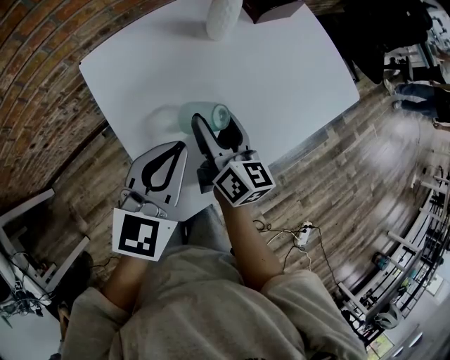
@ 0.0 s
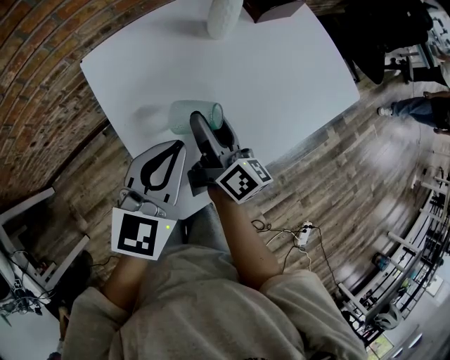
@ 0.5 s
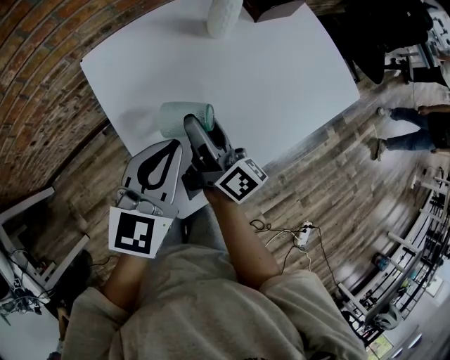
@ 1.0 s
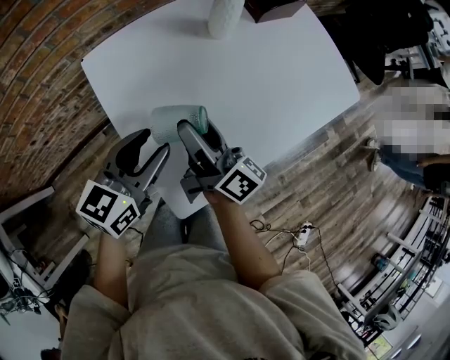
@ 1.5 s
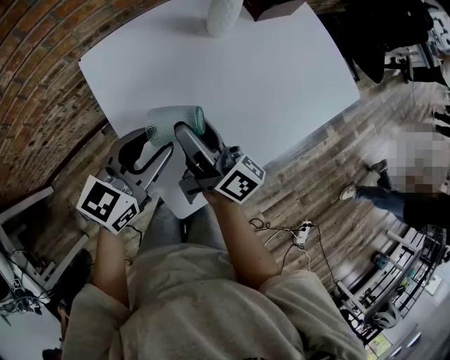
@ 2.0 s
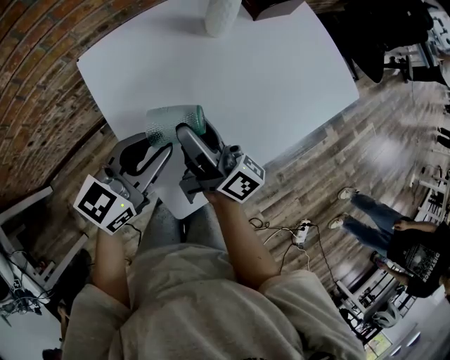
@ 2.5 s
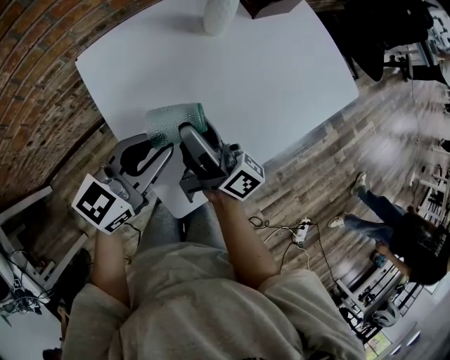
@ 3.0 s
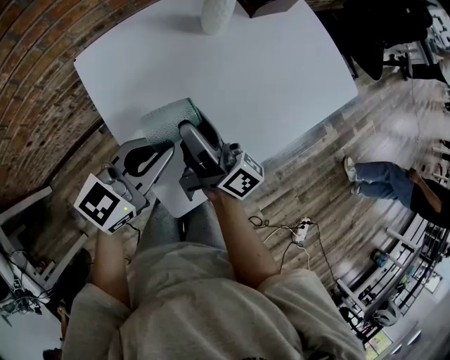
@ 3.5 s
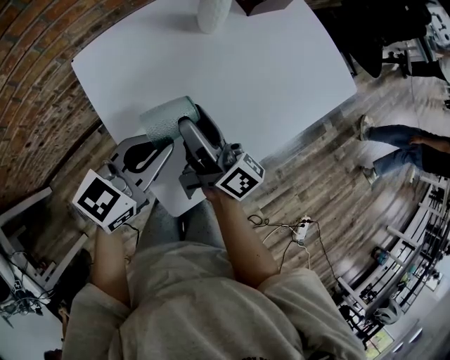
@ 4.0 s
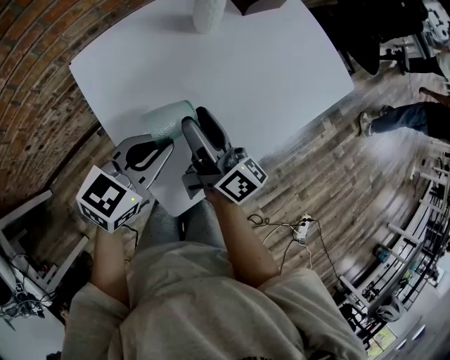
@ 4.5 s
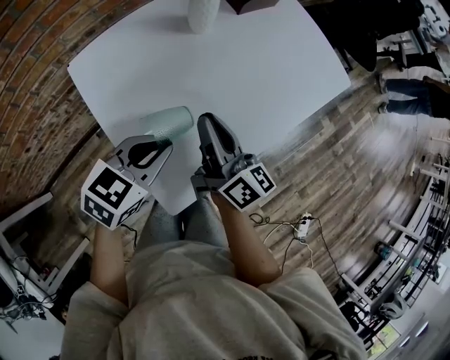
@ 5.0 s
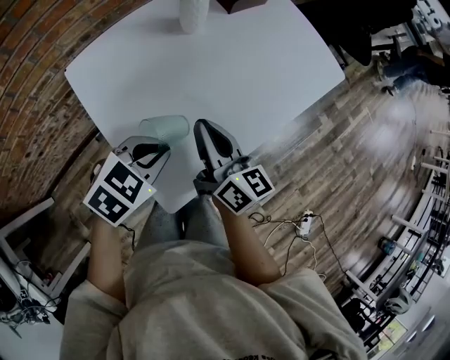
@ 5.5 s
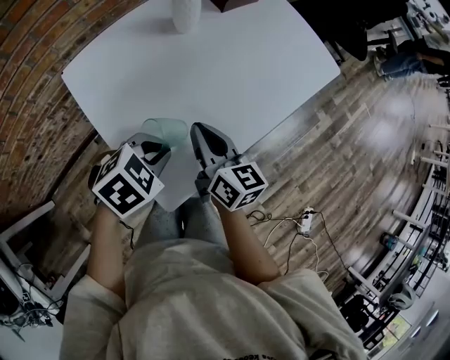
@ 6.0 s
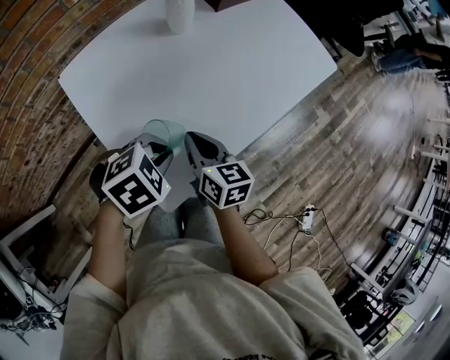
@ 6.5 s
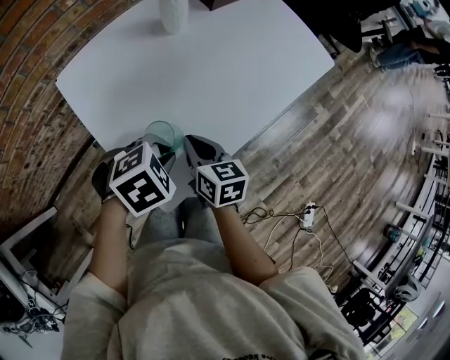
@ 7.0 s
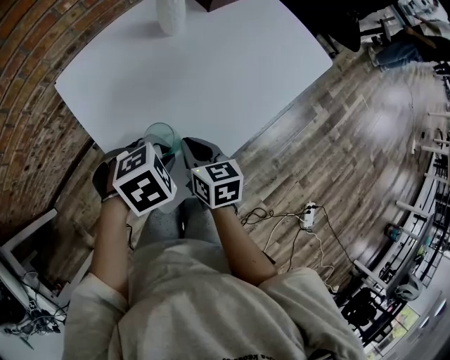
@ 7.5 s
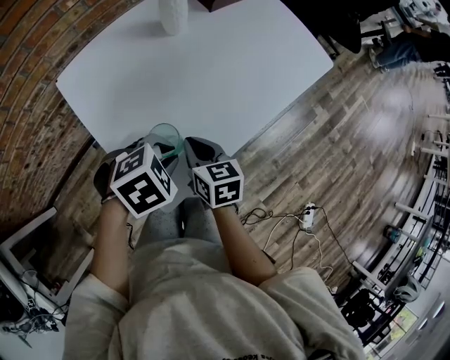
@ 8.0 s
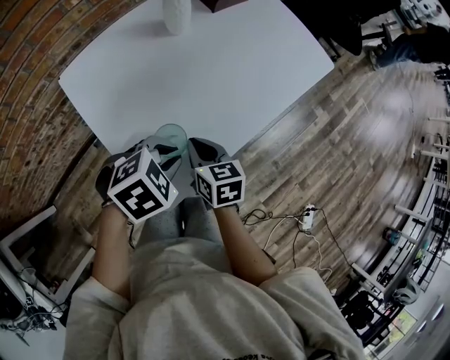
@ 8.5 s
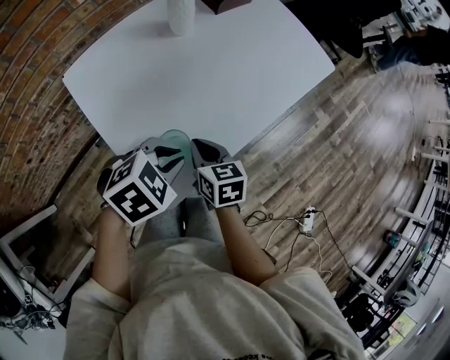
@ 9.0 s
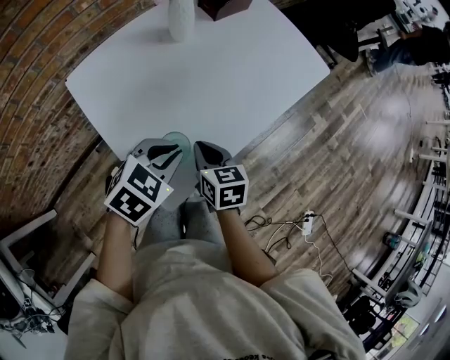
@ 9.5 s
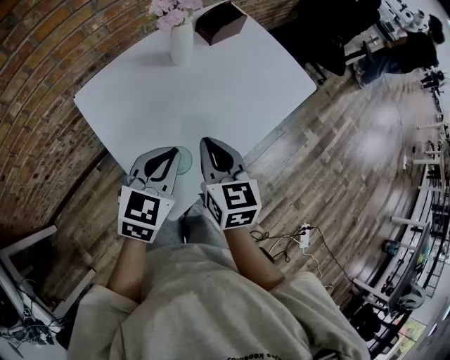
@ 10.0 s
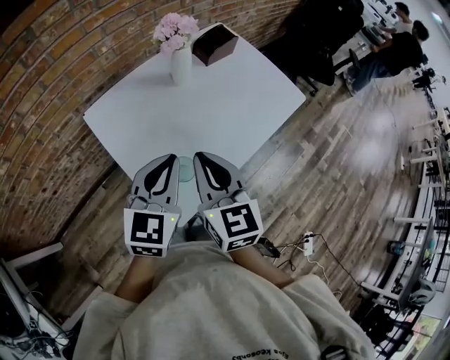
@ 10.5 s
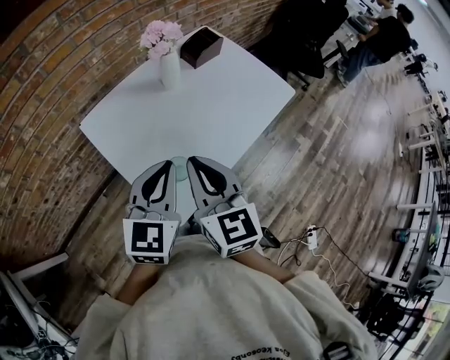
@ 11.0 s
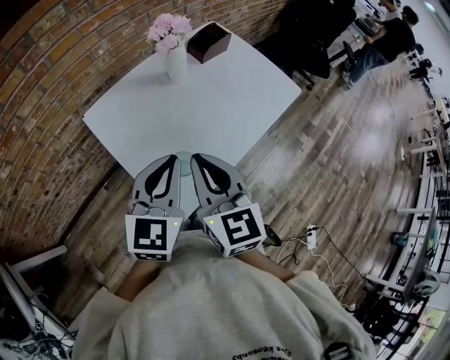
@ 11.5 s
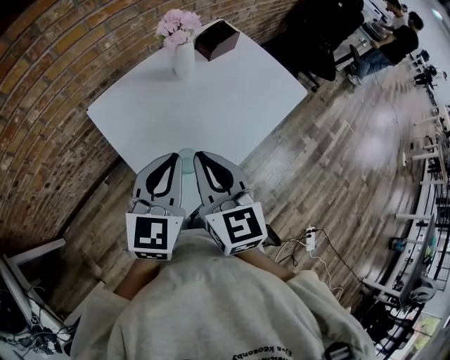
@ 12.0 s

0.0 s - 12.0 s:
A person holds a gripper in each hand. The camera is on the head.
0.0 s - 2.0 s: The right gripper ends up approximately 5 cm from where it was, and turns by approximately 40 degrees; the left gripper moves about 5 cm, and opens.
2.0 s - 4.0 s: The left gripper closes.
4.0 s - 6.0 s: The right gripper is displaced to the right by approximately 5 cm, swivels roughly 40 degrees, and closes its fingers. Meanwhile the left gripper moves downward, about 5 cm, and angles its fingers downward, by approximately 40 degrees.
6.0 s - 8.0 s: The right gripper heads downward, covering some 5 cm, and changes its angle by approximately 20 degrees.
8.0 s - 10.0 s: The grippers both shift upward by about 15 cm. The right gripper rotates approximately 20 degrees, while the left gripper tilts its fingers roughly 40 degrees upward.
10.0 s - 12.0 s: The right gripper moves upward and backward, some 15 cm. The left gripper is displaced upward by roughly 10 cm.

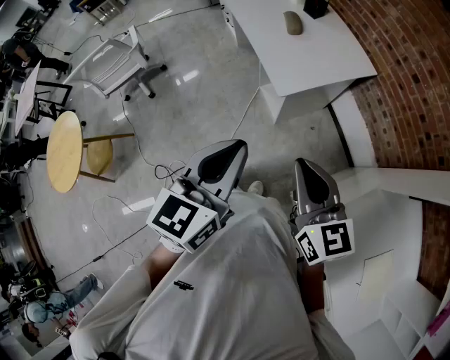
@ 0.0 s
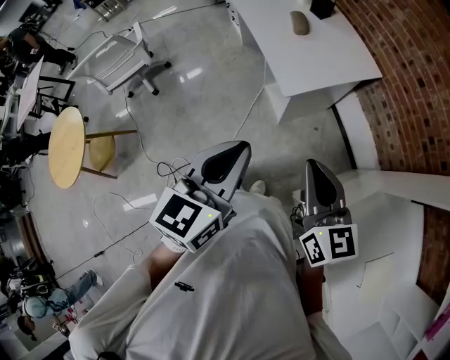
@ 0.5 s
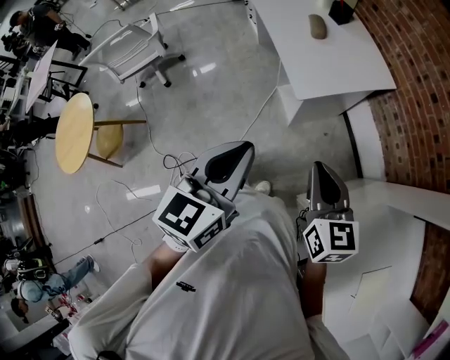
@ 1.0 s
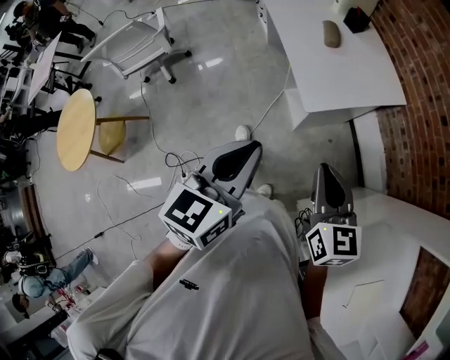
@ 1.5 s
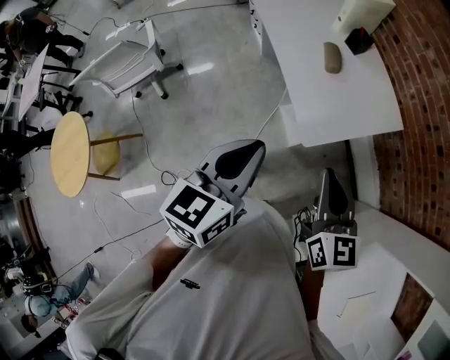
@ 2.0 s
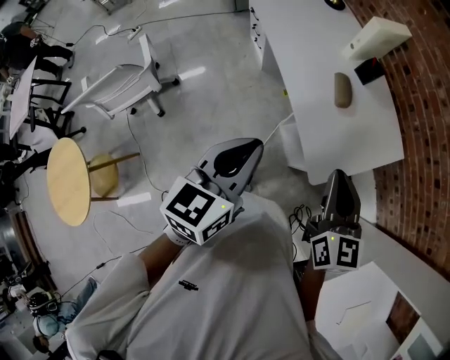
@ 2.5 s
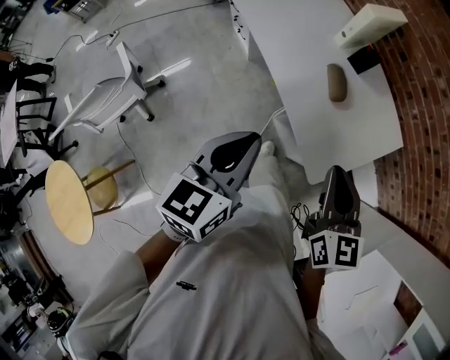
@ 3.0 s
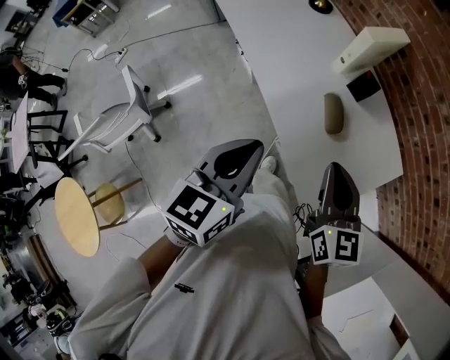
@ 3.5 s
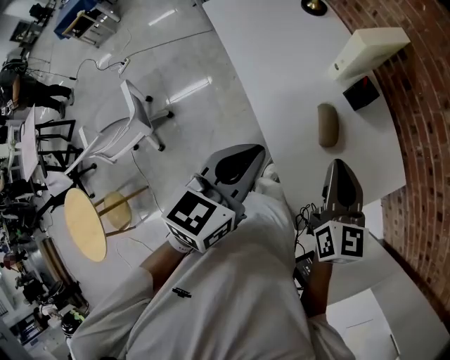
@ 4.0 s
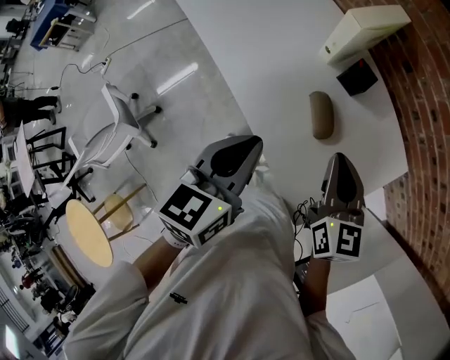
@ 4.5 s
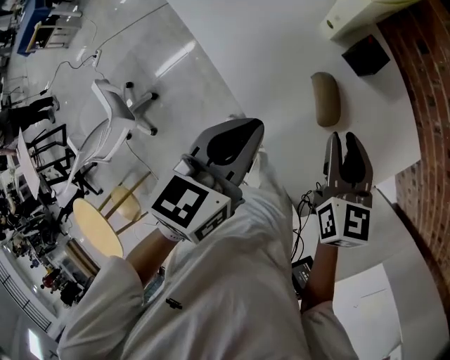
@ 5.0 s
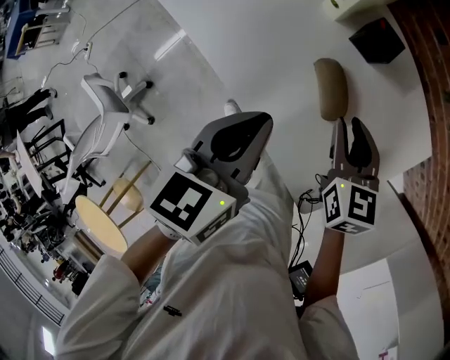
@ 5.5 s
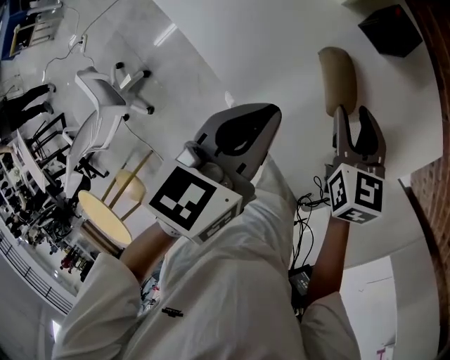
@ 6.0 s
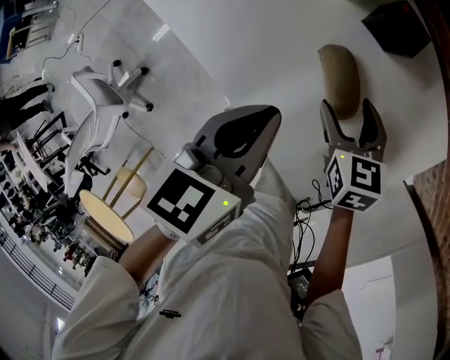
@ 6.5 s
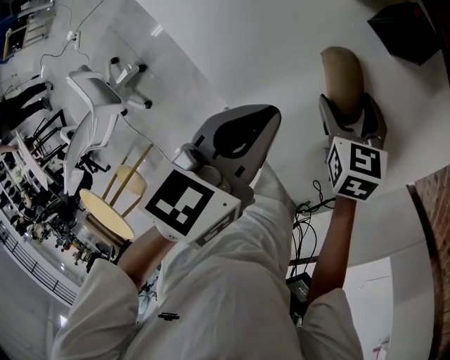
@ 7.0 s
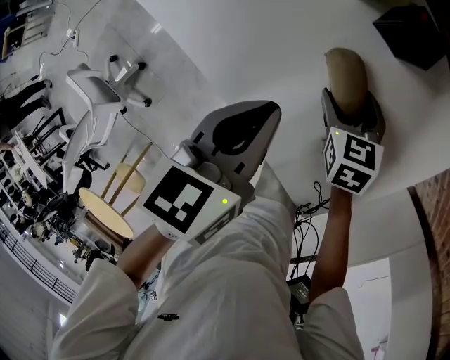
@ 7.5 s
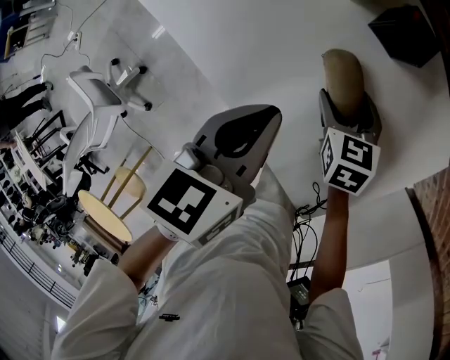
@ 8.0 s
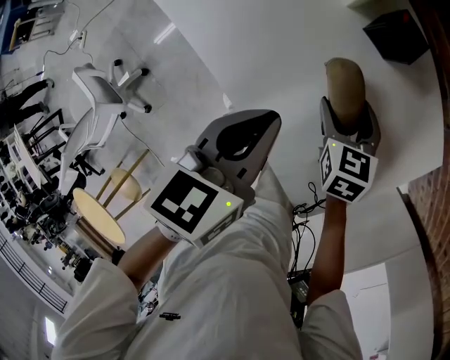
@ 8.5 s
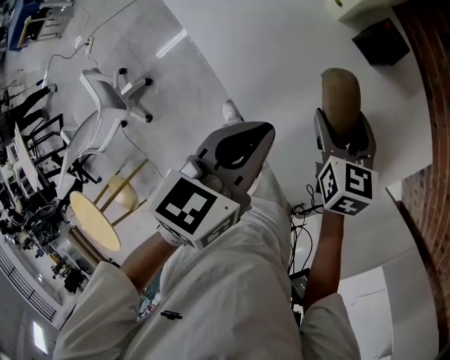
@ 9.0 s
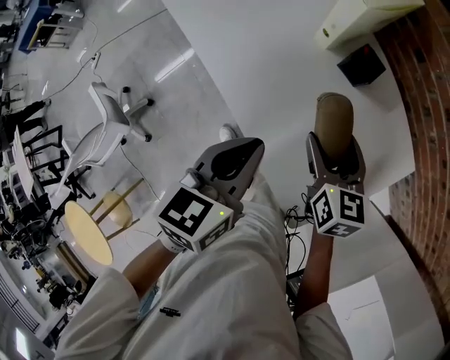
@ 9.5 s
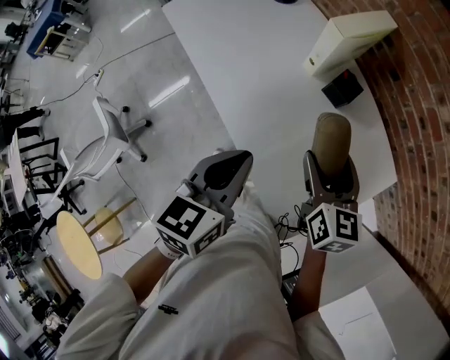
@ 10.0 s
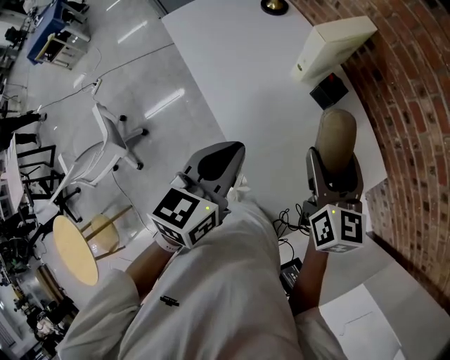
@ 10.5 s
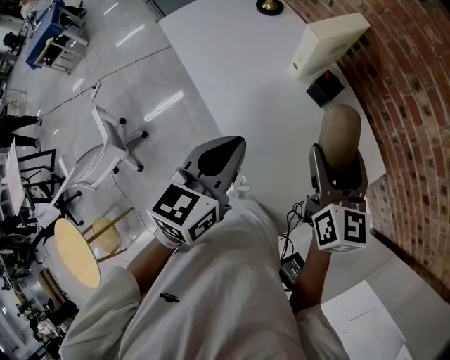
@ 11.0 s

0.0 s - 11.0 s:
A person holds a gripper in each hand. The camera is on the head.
0.0 s - 2.0 s: The left gripper goes some 25 cm forward and to the left. Meanwhile the right gripper travels forward by some 20 cm.
2.0 s - 3.5 s: Both grippers travel together forward, roughly 30 cm.
3.5 s - 5.5 s: The right gripper shifts about 30 cm downward and forward, and rotates about 20 degrees, while the left gripper moves forward and downward, approximately 25 cm.
5.5 s - 7.5 s: The left gripper shifts roughly 10 cm downward; the right gripper goes some 20 cm downward, and opens.
7.5 s - 9.0 s: The right gripper moves upward, about 10 cm; the left gripper moves upward and backward, roughly 10 cm.
9.0 s - 11.0 s: The right gripper moves upward, approximately 25 cm, and changes its angle by some 30 degrees, while the left gripper goes some 15 cm upward.

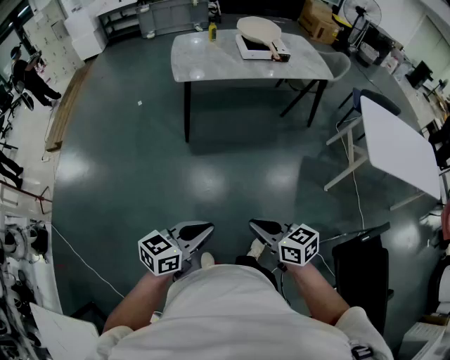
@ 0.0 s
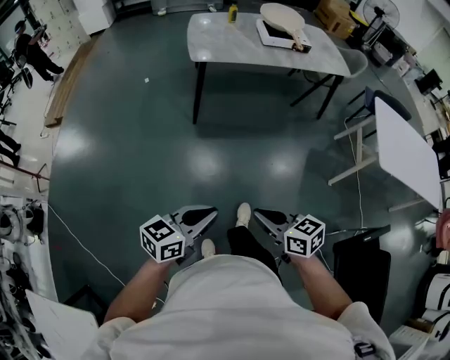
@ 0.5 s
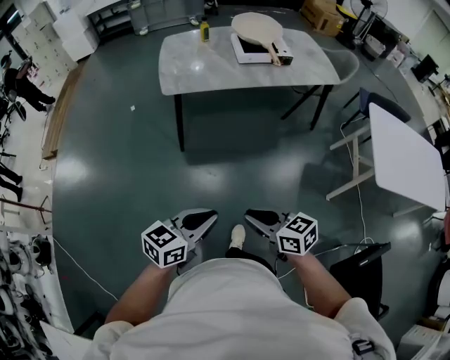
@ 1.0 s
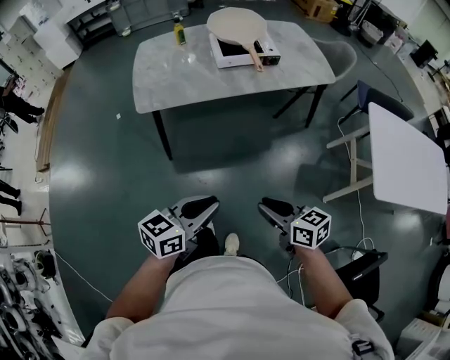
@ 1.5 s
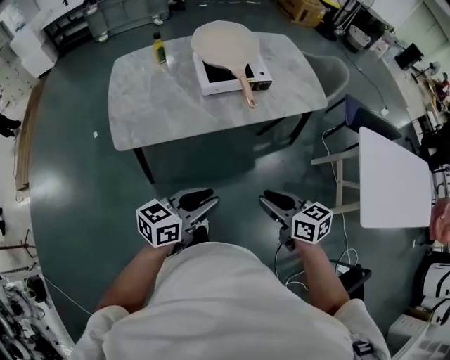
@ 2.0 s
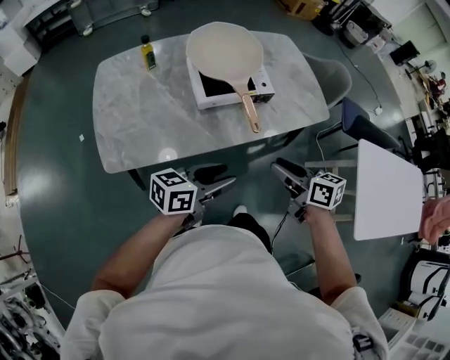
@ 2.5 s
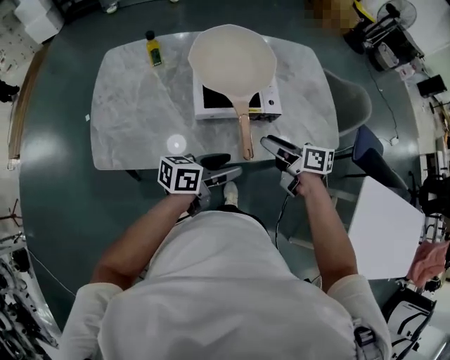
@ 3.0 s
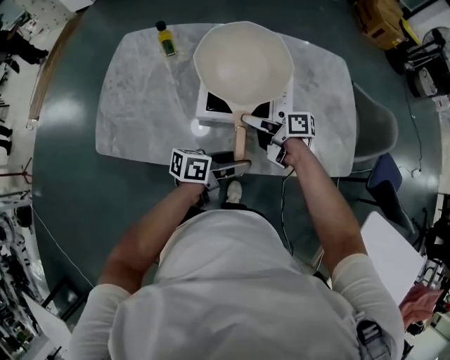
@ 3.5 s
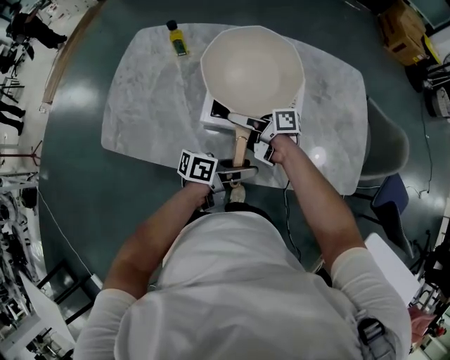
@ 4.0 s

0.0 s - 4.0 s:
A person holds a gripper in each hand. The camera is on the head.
0.0 s - 2.0 s: The pair of grippers is taken forward, approximately 60 cm.
2.0 s - 4.0 s: The pair of grippers is taken roughly 50 cm. The right gripper turns by roughly 60 degrees, and opens its fingers. The left gripper turns by approximately 40 degrees, and opens.
